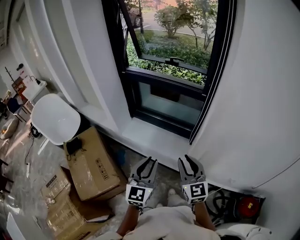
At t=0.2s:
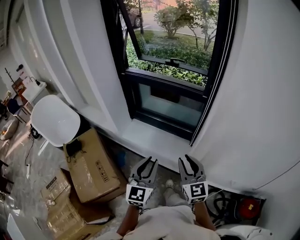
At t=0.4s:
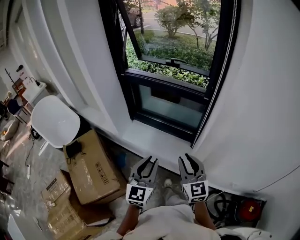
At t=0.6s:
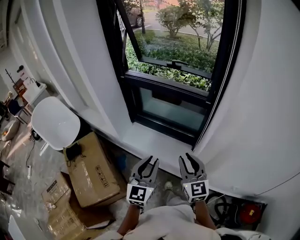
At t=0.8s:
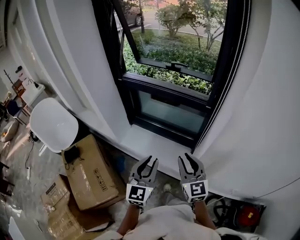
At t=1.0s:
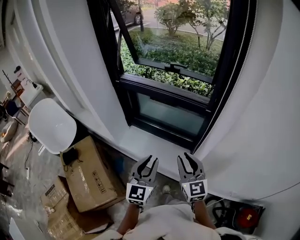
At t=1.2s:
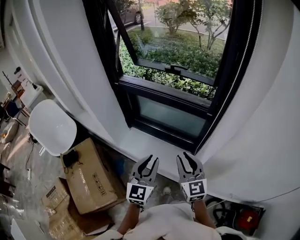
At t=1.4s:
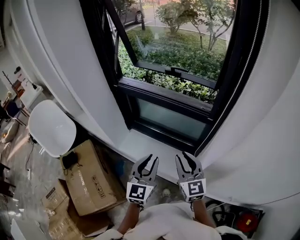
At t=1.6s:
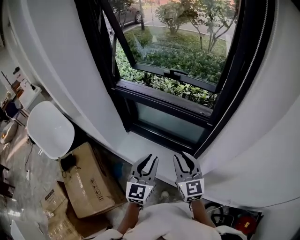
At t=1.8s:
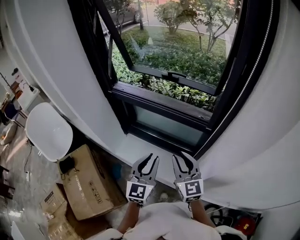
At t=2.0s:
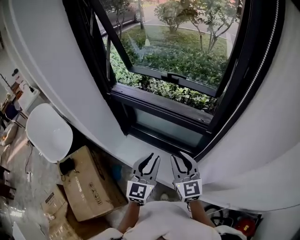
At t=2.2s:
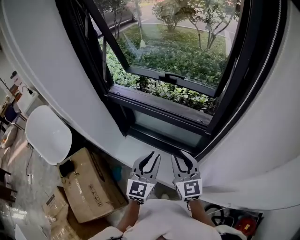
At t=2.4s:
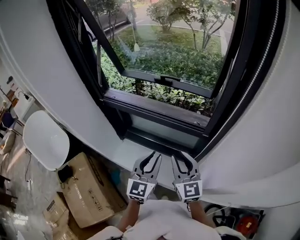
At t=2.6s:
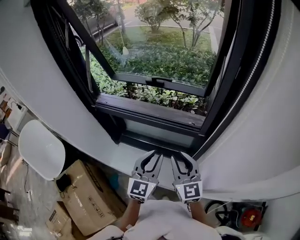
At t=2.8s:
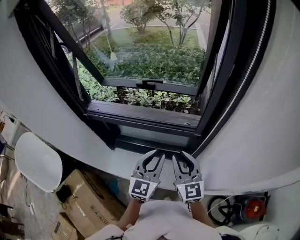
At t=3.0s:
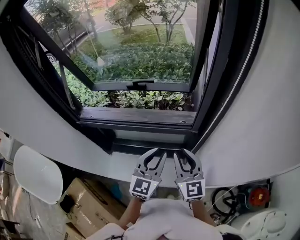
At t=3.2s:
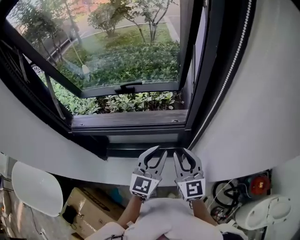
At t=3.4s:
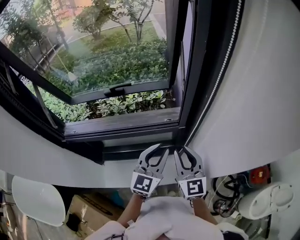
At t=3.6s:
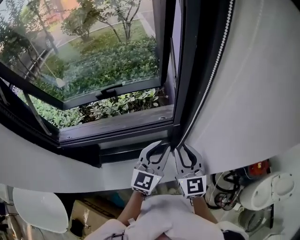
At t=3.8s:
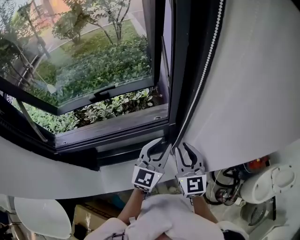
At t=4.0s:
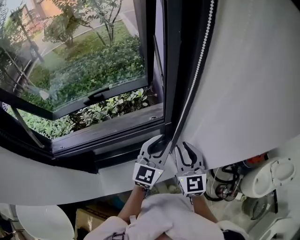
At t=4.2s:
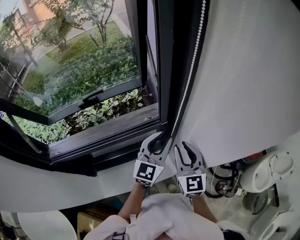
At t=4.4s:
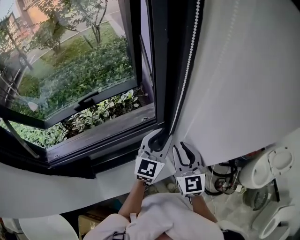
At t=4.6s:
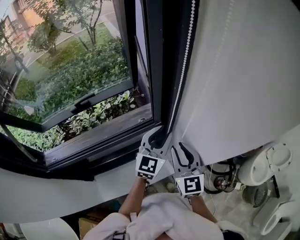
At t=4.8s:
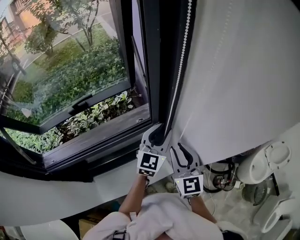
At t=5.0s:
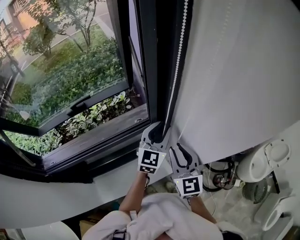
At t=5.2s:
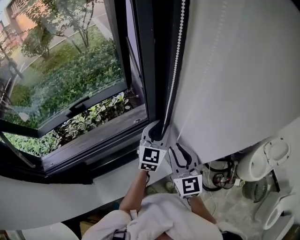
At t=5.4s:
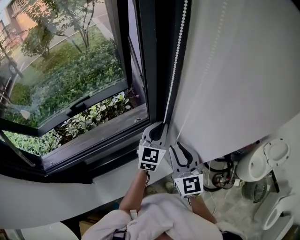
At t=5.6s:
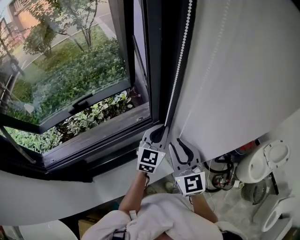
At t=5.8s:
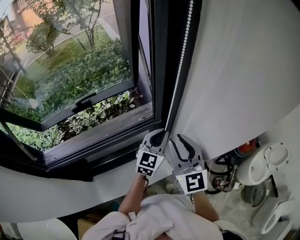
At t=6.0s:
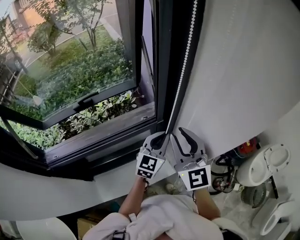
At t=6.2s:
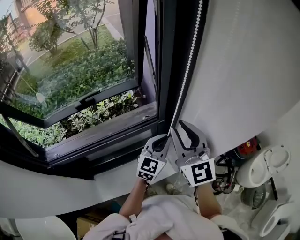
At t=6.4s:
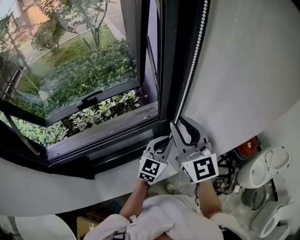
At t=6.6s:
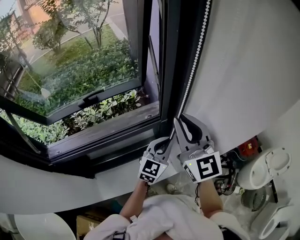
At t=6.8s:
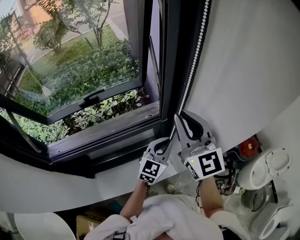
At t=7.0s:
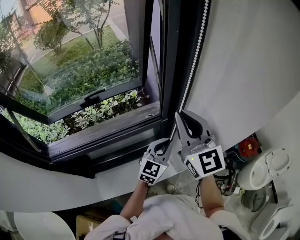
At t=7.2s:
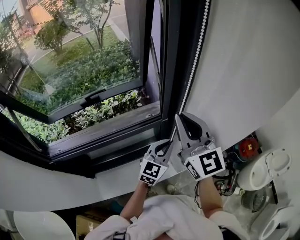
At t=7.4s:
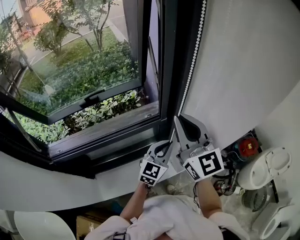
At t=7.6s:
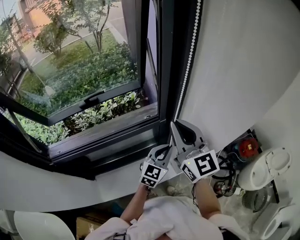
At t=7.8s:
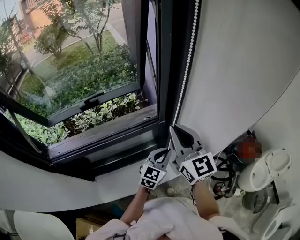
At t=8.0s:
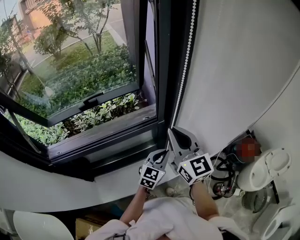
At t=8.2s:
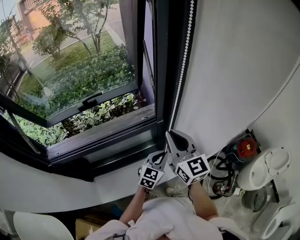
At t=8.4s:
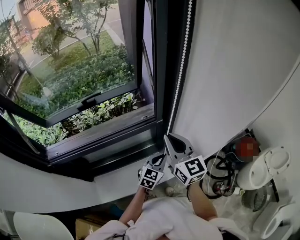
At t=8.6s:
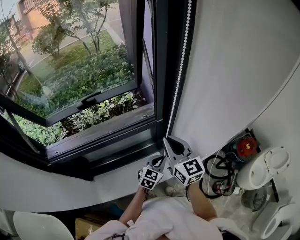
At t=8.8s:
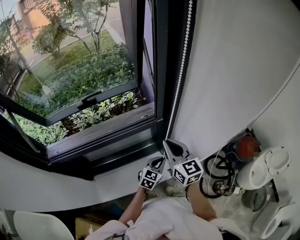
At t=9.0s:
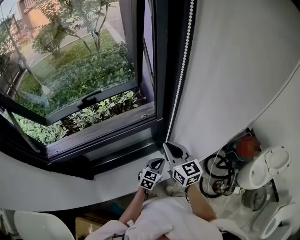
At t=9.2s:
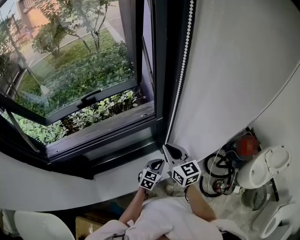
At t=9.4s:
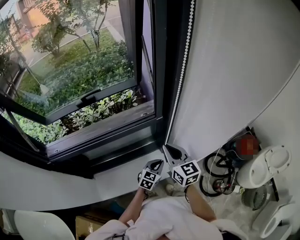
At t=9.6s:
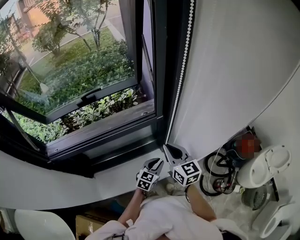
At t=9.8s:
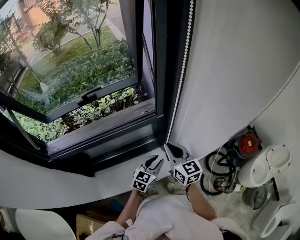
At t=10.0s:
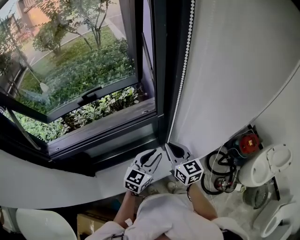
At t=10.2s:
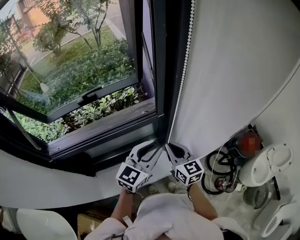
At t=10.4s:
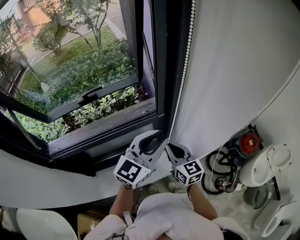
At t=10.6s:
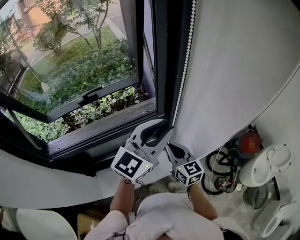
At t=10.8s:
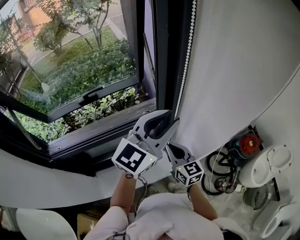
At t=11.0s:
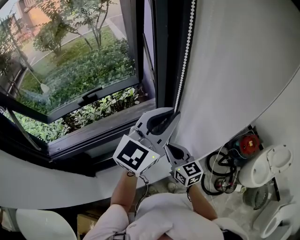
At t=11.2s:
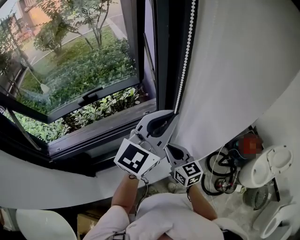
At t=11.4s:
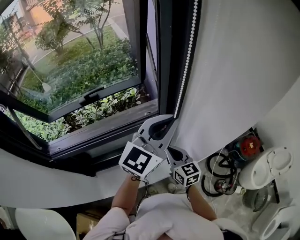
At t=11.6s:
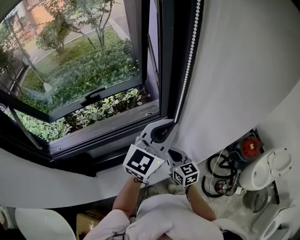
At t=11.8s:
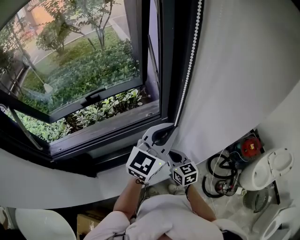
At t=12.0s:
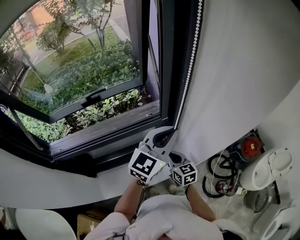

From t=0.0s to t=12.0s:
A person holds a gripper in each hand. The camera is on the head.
From t=0.0s to t=1.6s: Both grippers move forward, roughly 25 cm.
From t=1.6s to t=3.0s: The two grippers go about 15 cm forward and to the right. The right gripper swivels some 20 degrees, while the left gripper turns by approximately 30 degrees.
From t=3.0s to t=4.4s: The left gripper ends up roughly 15 cm from where it was, and rotates approximately 30 degrees. The right gripper ends up roughly 10 cm from where it was, and rotates approximately 30 degrees.
From t=4.4s to t=6.0s: The right gripper travels upward by approximately 10 cm. Meanwhile the left gripper closes its fingers.
From t=6.0s to t=7.6s: The left gripper travels backward by approximately 5 cm. Meanwhile the right gripper closes up.
From t=7.6s to t=9.0s: Both grippers travel together downward, approximately 15 cm. The right gripper changes its angle by about 20 degrees.
From t=9.0s to t=10.4s: The left gripper shifts roughly 30 cm upward, swivels about 30 degrees, and opens up.
From t=10.4s to t=12.0s: The right gripper moves downward, approximately 10 cm, while the left gripper goes upward and returns, some 10 cm each way, and closes its fingers.

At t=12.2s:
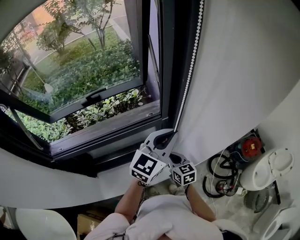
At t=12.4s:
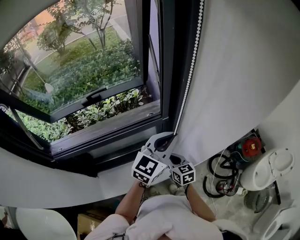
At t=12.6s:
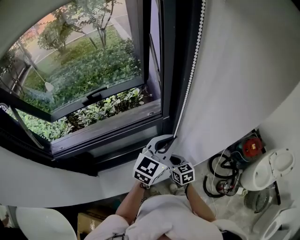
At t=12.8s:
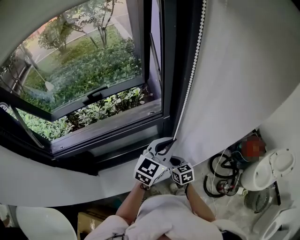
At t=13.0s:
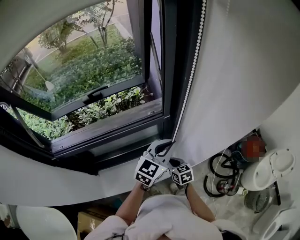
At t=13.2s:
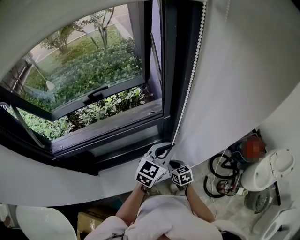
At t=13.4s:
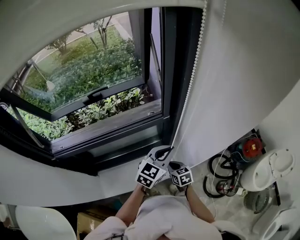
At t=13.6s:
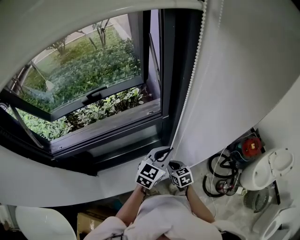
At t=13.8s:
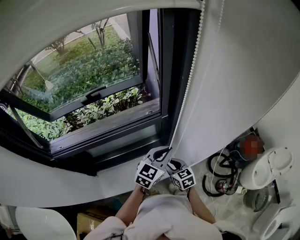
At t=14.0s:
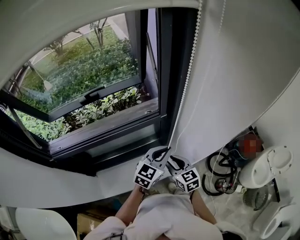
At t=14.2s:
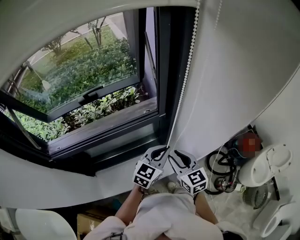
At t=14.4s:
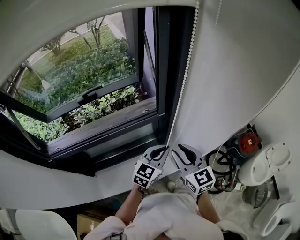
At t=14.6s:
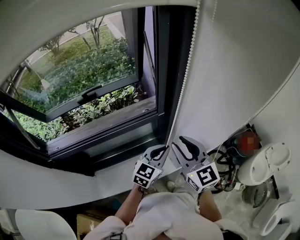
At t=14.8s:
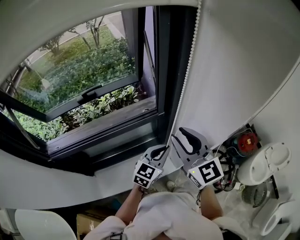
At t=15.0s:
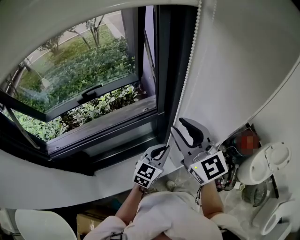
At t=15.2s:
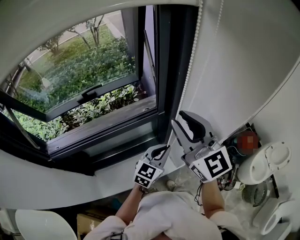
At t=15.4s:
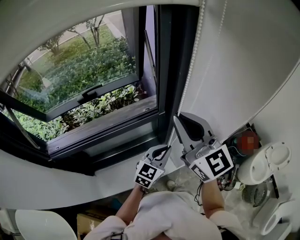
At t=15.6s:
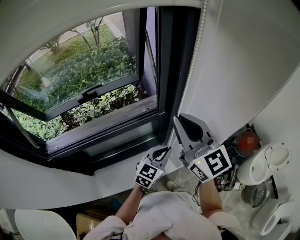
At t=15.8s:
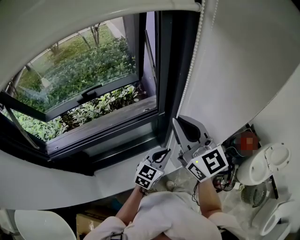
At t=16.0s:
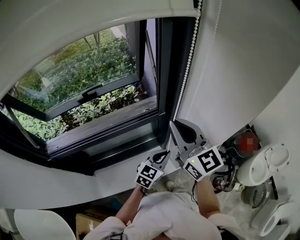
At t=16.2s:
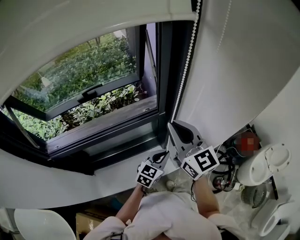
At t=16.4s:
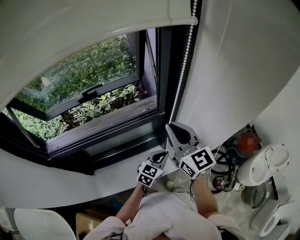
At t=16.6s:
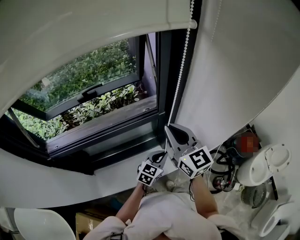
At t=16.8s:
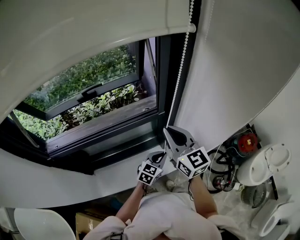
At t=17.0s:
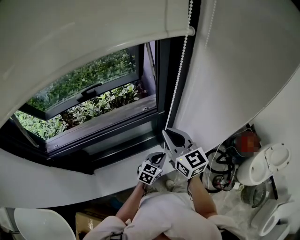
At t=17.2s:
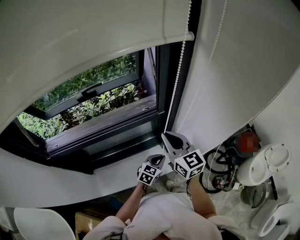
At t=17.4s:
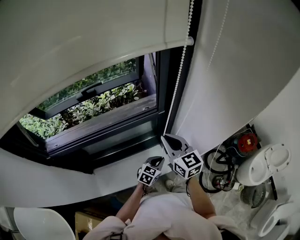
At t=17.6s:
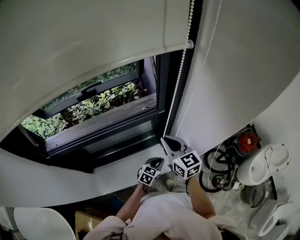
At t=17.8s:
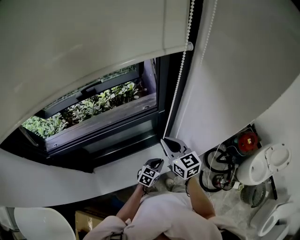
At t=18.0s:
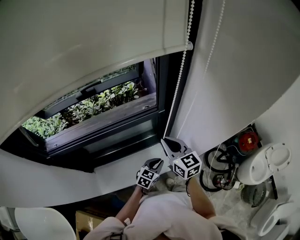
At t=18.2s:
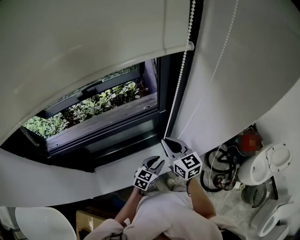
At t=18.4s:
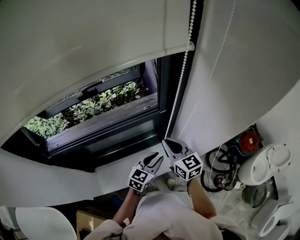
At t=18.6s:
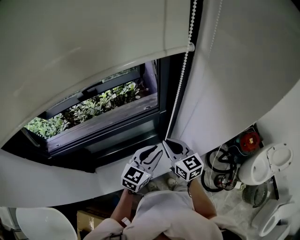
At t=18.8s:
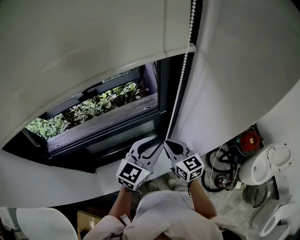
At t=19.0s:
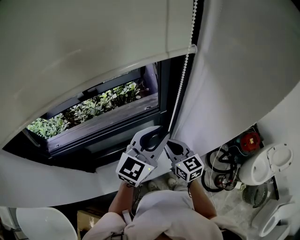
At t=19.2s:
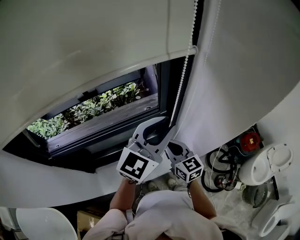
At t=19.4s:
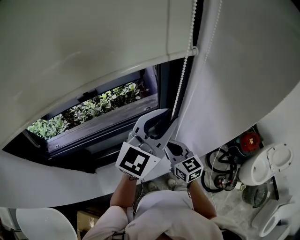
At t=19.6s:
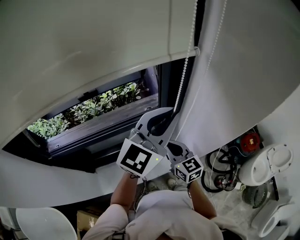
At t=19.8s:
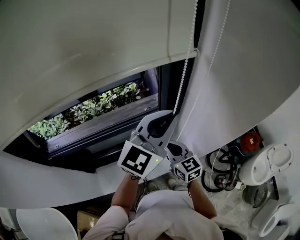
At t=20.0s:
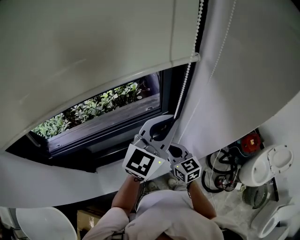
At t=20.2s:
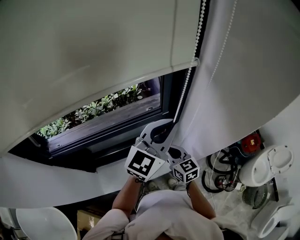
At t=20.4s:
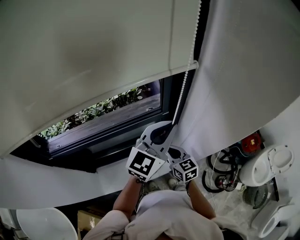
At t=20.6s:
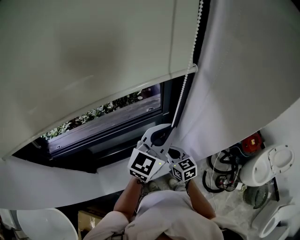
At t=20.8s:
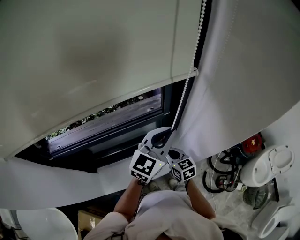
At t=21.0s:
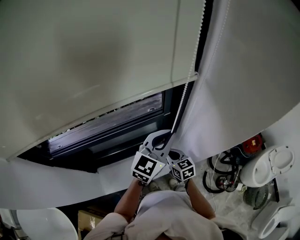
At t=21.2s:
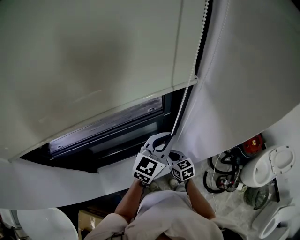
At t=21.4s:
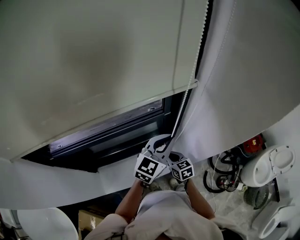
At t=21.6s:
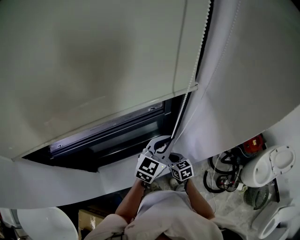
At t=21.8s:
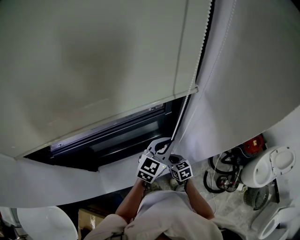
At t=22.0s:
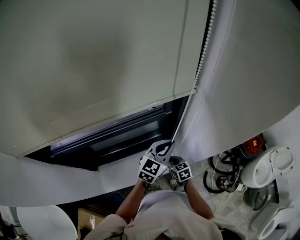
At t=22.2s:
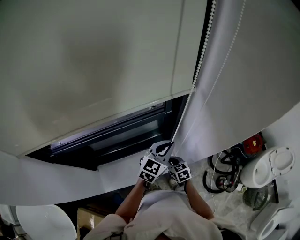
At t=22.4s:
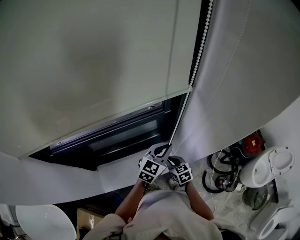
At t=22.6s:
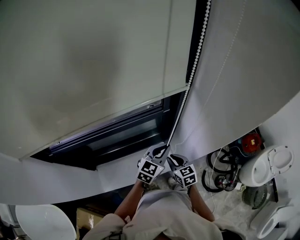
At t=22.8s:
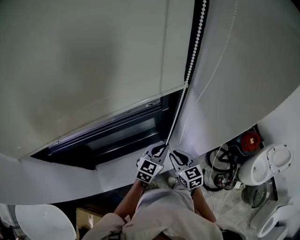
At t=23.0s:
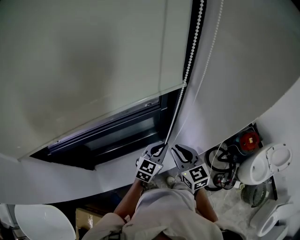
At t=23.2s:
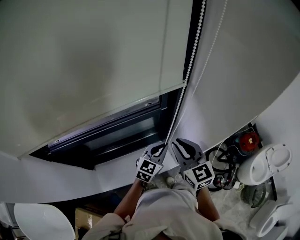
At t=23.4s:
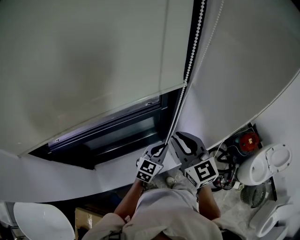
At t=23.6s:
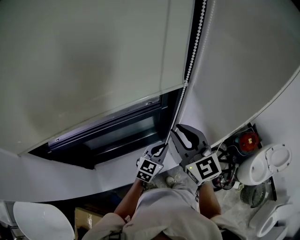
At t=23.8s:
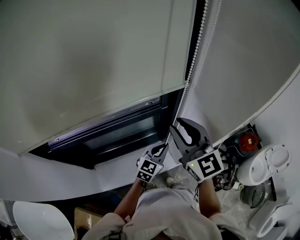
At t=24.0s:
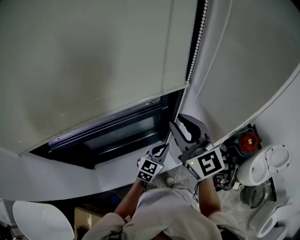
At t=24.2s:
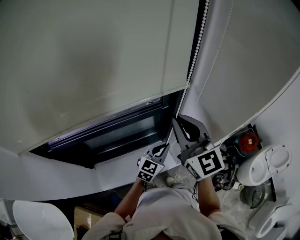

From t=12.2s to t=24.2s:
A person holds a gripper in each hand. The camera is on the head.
From t=12.2s to t=13.8s: The left gripper heads downward, covering about 15 cm, while the right gripper opens.
From t=13.8s to t=15.2s: The right gripper shifts about 40 cm upward, and angles its fingers upward, by roughly 40 degrees.
From t=15.2s to t=16.6s: Both grippers move downward, about 10 cm. The right gripper closes its fingers.
From t=16.6s to t=18.2s: The right gripper goes about 15 cm downward; the left gripper opens.
From t=18.2s to t=19.8s: The left gripper shifts some 40 cm upward, angles its fingers upward, by some 30 degrees, and closes.
From t=19.8s to t=21.2s: The two grippers go about 15 cm downward.
From t=21.2s to t=22.6s: The left gripper goes approximately 10 cm downward.
From t=22.6s to t=24.2s: The right gripper travels upward by about 35 cm, and points its fingers about 40 degrees further upward.
